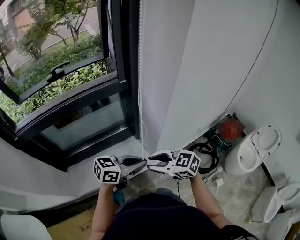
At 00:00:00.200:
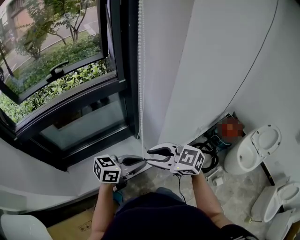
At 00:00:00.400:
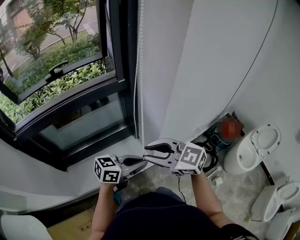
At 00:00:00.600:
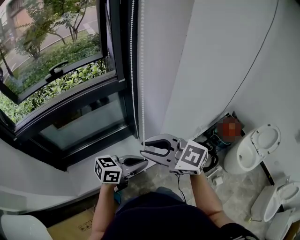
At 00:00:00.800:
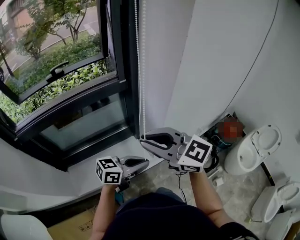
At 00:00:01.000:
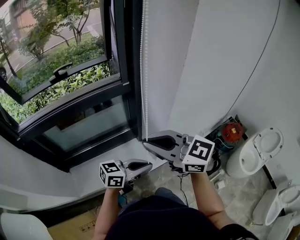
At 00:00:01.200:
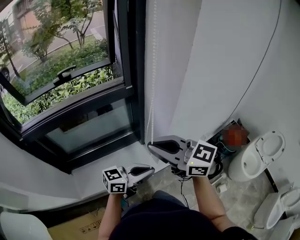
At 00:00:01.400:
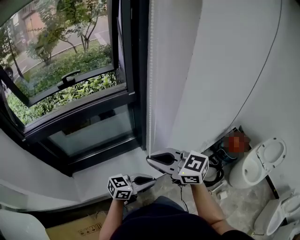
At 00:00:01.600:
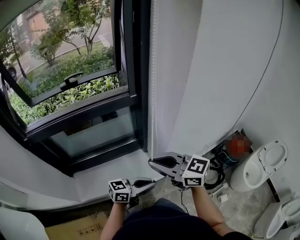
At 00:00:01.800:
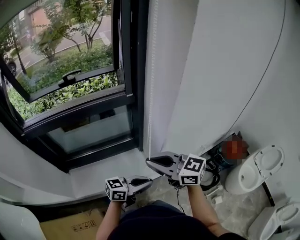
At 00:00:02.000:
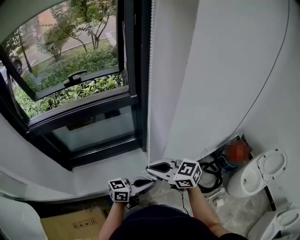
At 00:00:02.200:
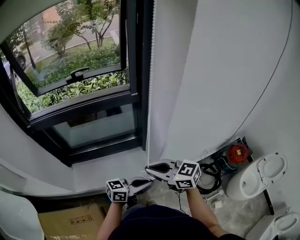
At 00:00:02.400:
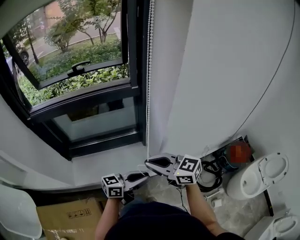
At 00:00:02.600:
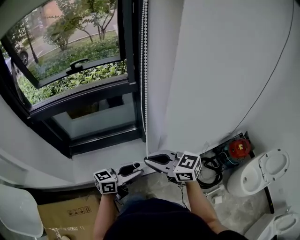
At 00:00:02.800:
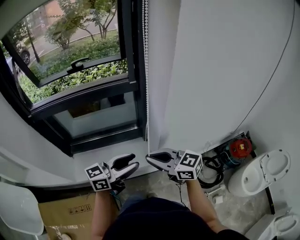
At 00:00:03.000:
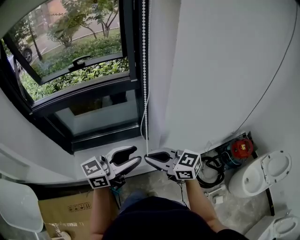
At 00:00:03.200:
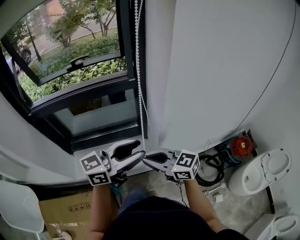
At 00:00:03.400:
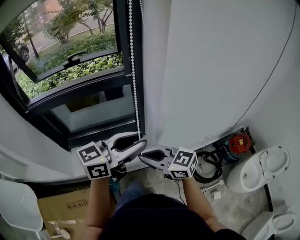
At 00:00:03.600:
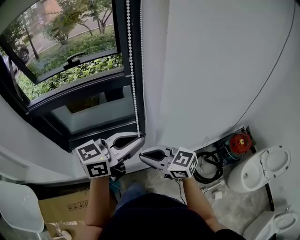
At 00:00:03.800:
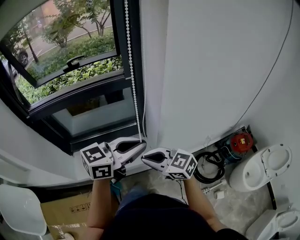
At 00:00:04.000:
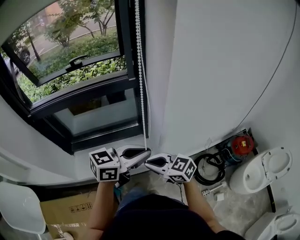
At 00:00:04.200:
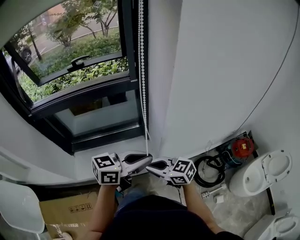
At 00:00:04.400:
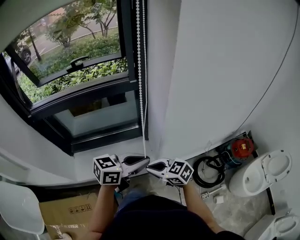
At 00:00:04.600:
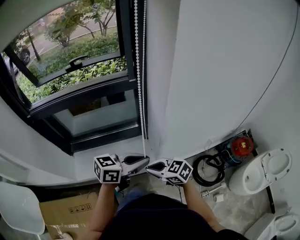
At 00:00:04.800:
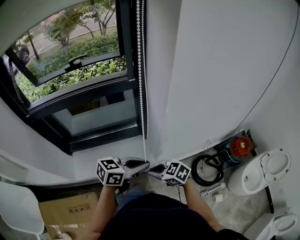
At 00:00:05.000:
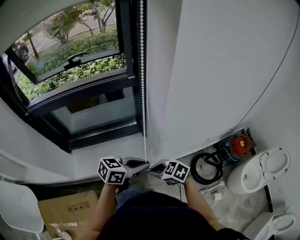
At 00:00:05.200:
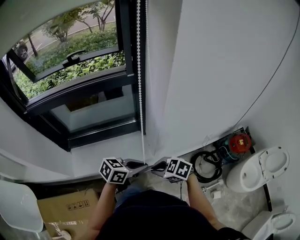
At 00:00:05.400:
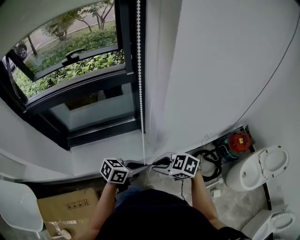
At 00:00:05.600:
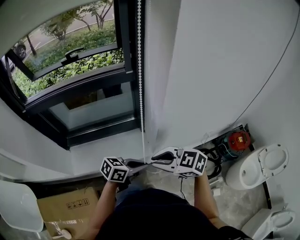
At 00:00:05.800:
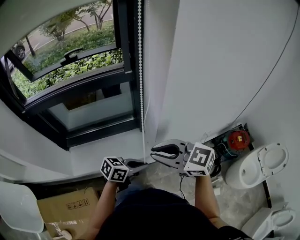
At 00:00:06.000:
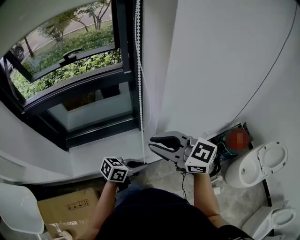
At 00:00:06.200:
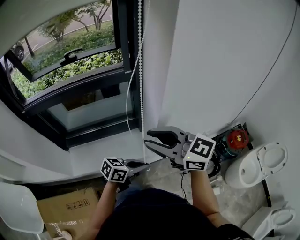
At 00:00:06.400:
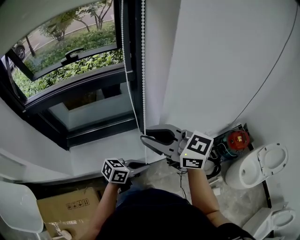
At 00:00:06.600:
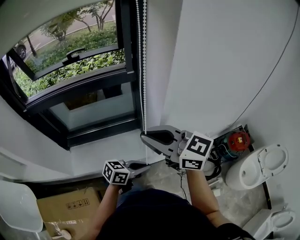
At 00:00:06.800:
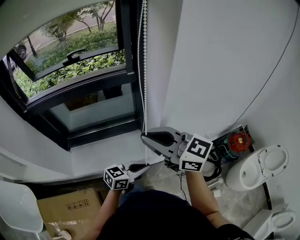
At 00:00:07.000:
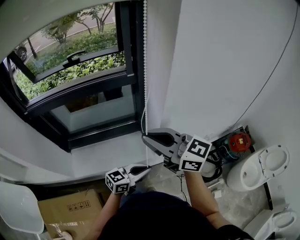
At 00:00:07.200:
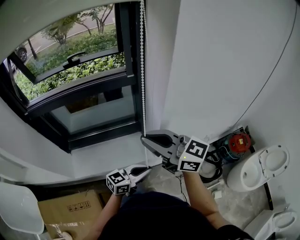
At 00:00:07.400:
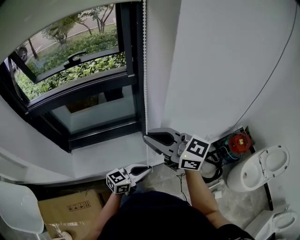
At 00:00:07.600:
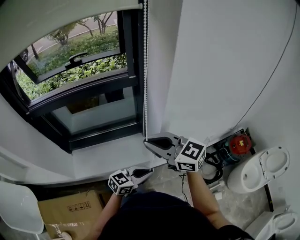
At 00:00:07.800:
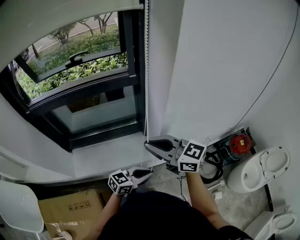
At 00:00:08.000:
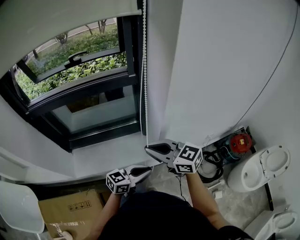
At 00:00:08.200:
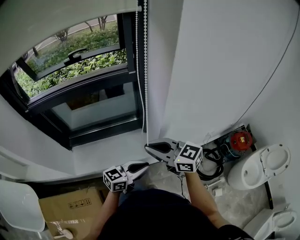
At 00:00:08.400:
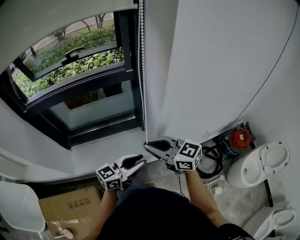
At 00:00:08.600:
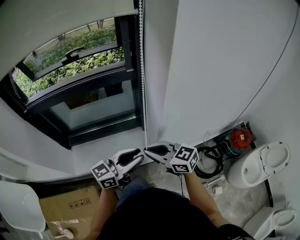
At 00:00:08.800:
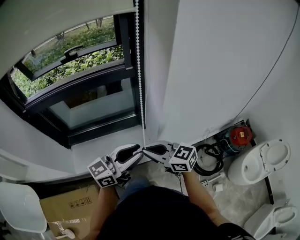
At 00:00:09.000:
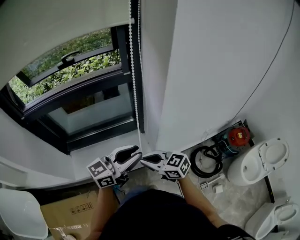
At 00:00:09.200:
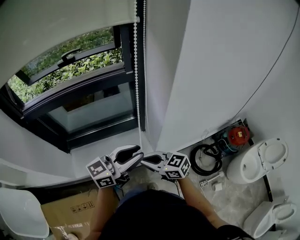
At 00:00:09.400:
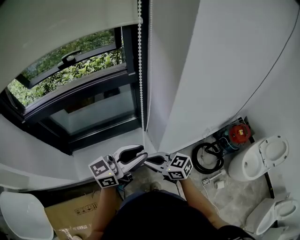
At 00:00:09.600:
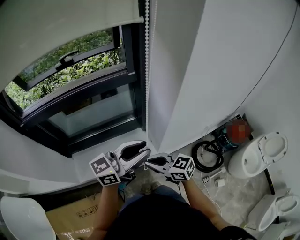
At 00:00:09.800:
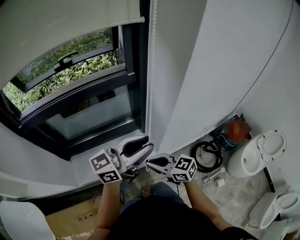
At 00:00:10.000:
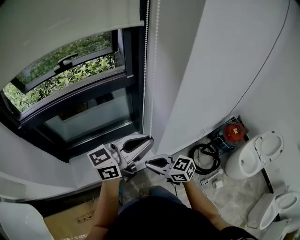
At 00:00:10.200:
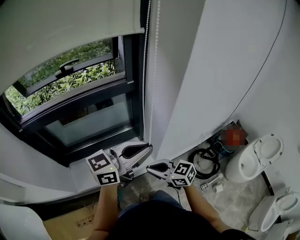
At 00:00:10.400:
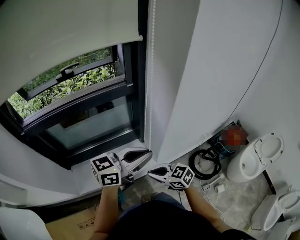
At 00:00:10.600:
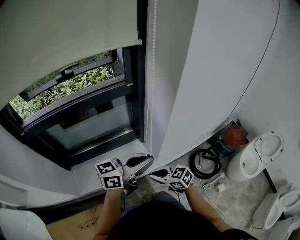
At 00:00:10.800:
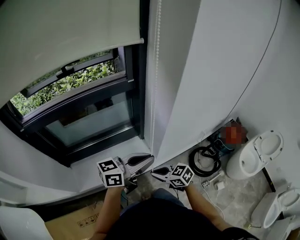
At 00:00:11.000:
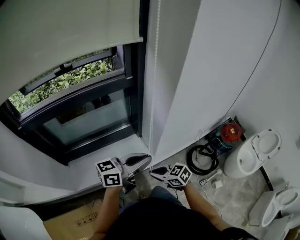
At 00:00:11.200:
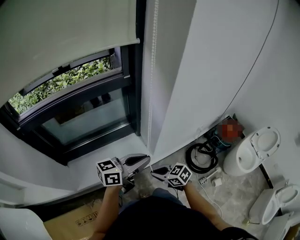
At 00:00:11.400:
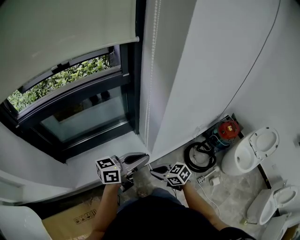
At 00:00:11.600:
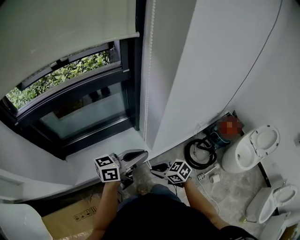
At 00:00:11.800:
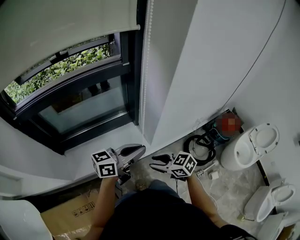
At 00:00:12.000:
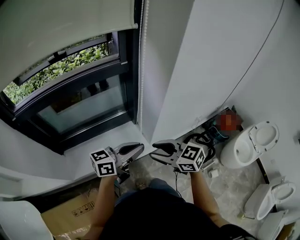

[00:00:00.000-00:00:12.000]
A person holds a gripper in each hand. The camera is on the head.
00:00:00.000 to 00:00:01.600: The right gripper travels upward by about 15 cm, rotates approximately 20 degrees, and closes, while the left gripper changes place by about 5 cm.
00:00:01.600 to 00:00:03.000: The left gripper moves upward, approximately 15 cm, swivels approximately 30 degrees, and opens. Meanwhile the right gripper travels downward by some 5 cm.
00:00:03.000 to 00:00:04.400: The right gripper travels downward by approximately 10 cm; the left gripper moves downward, some 5 cm, turns by roughly 20 degrees, and closes its fingers.
00:00:04.400 to 00:00:06.000: The left gripper travels downward by roughly 10 cm. Meanwhile the right gripper travels upward by roughly 20 cm, and turns by about 20 degrees.
00:00:06.000 to 00:00:07.600: The left gripper swivels some 20 degrees.
00:00:07.600 to 00:00:09.000: The left gripper travels upward by approximately 15 cm, and changes its angle by about 20 degrees; the right gripper is displaced downward by some 15 cm.
00:00:09.000 to 00:00:10.400: The left gripper travels upward by roughly 5 cm.
00:00:10.400 to 00:00:12.000: The right gripper moves upward, some 5 cm, and opens up, while the left gripper goes about 10 cm downward.

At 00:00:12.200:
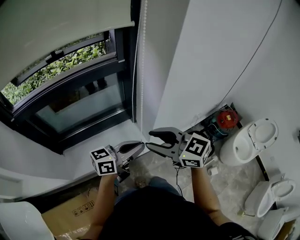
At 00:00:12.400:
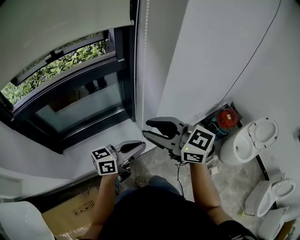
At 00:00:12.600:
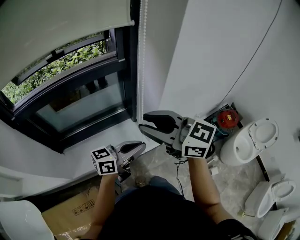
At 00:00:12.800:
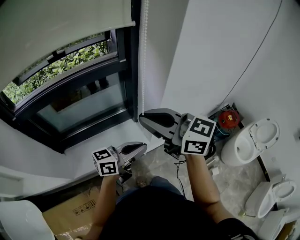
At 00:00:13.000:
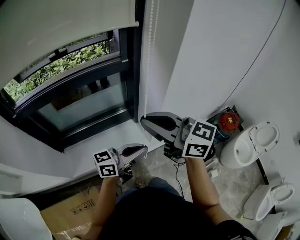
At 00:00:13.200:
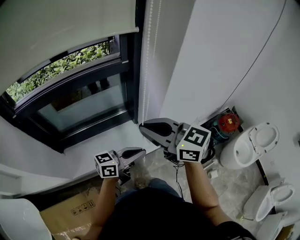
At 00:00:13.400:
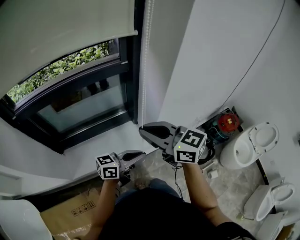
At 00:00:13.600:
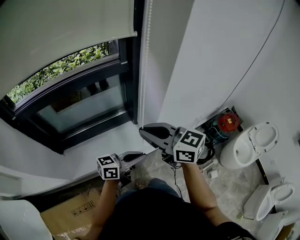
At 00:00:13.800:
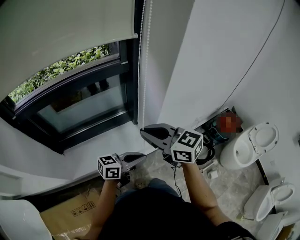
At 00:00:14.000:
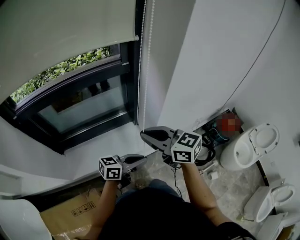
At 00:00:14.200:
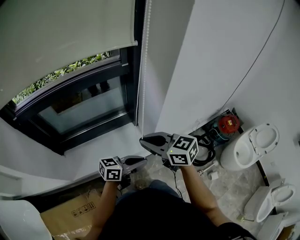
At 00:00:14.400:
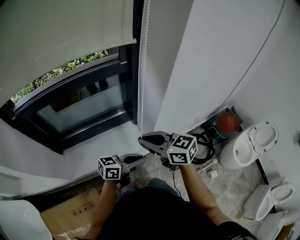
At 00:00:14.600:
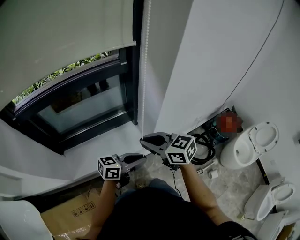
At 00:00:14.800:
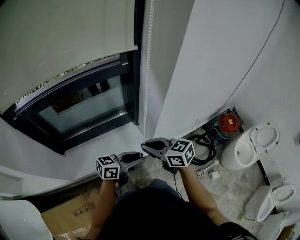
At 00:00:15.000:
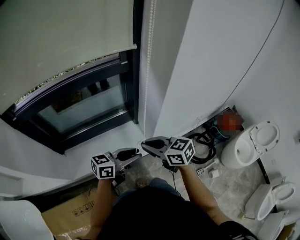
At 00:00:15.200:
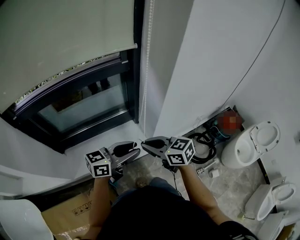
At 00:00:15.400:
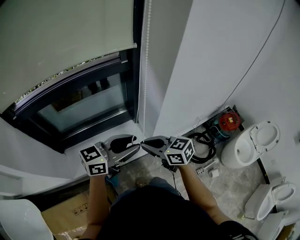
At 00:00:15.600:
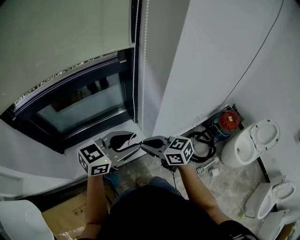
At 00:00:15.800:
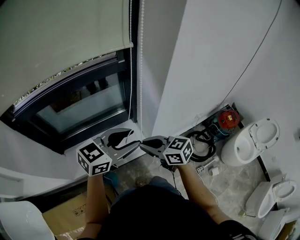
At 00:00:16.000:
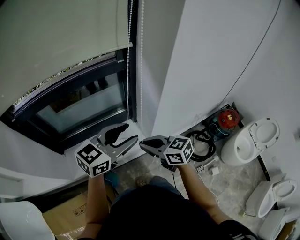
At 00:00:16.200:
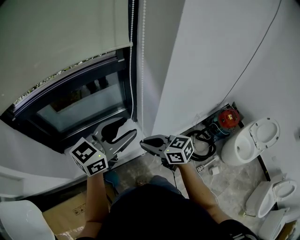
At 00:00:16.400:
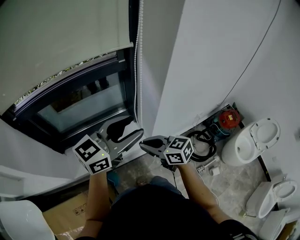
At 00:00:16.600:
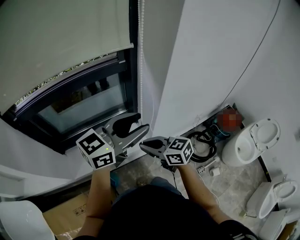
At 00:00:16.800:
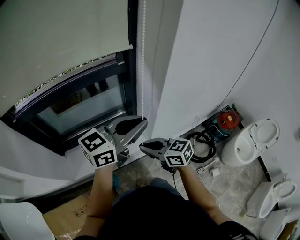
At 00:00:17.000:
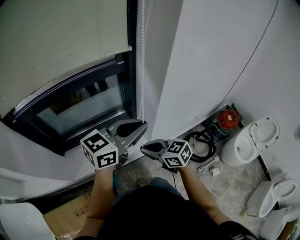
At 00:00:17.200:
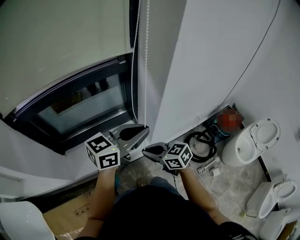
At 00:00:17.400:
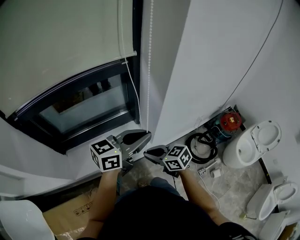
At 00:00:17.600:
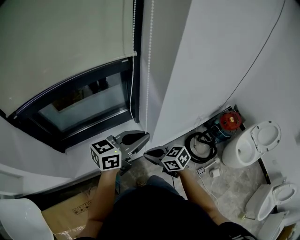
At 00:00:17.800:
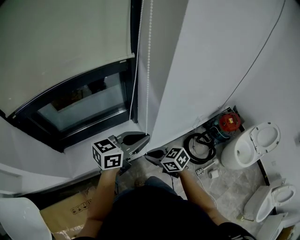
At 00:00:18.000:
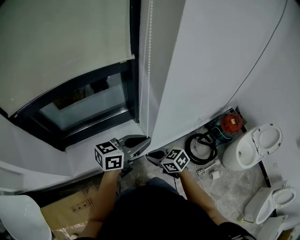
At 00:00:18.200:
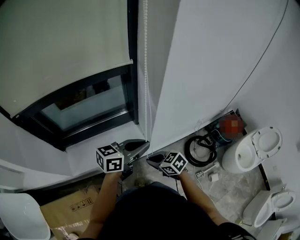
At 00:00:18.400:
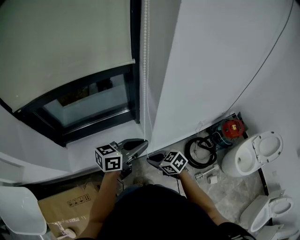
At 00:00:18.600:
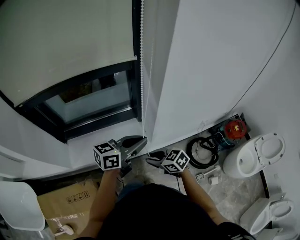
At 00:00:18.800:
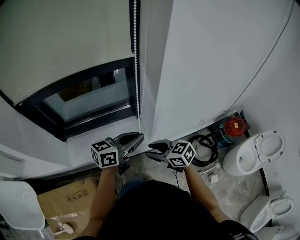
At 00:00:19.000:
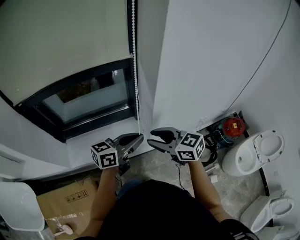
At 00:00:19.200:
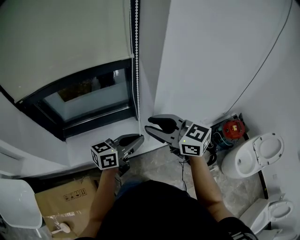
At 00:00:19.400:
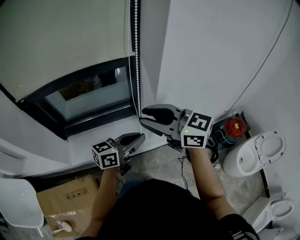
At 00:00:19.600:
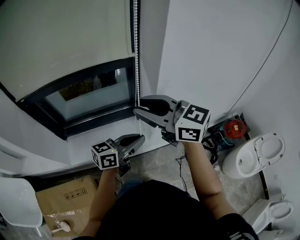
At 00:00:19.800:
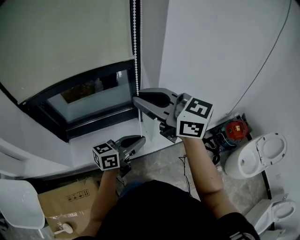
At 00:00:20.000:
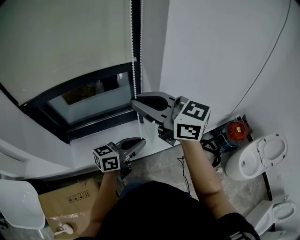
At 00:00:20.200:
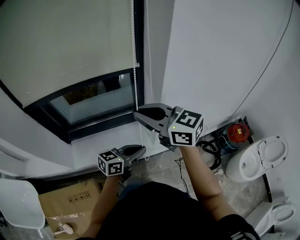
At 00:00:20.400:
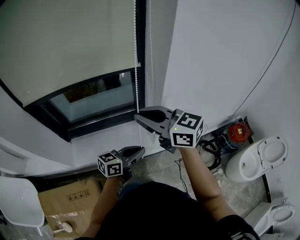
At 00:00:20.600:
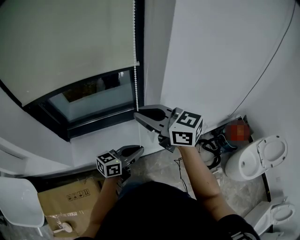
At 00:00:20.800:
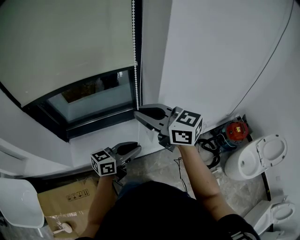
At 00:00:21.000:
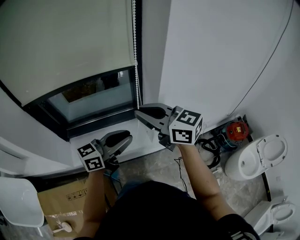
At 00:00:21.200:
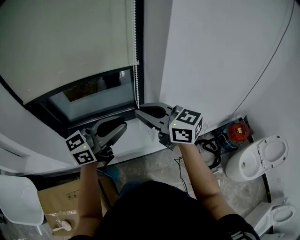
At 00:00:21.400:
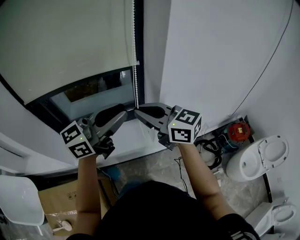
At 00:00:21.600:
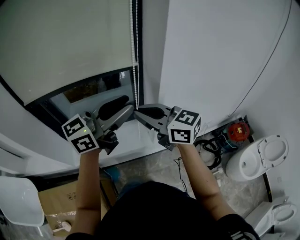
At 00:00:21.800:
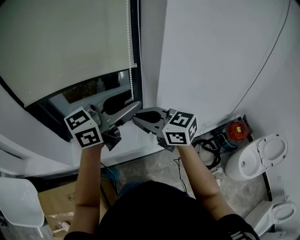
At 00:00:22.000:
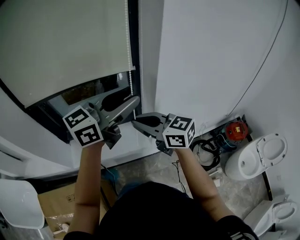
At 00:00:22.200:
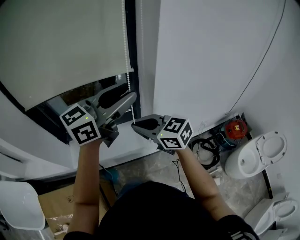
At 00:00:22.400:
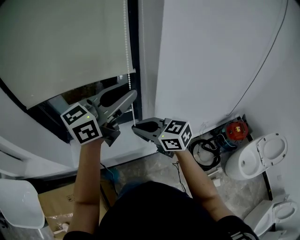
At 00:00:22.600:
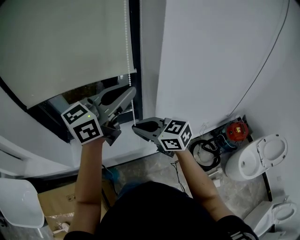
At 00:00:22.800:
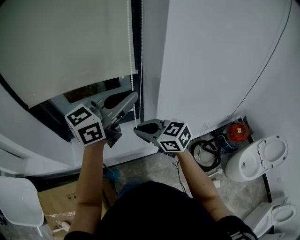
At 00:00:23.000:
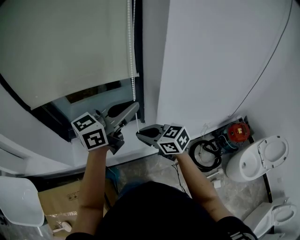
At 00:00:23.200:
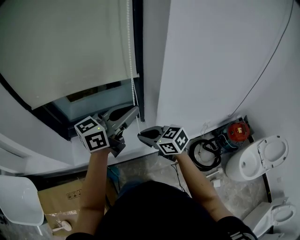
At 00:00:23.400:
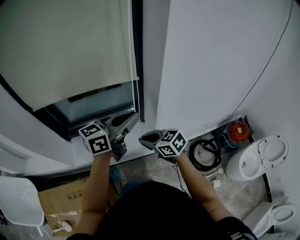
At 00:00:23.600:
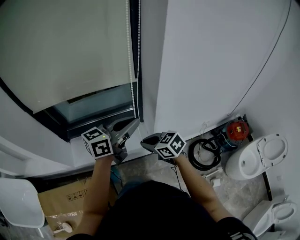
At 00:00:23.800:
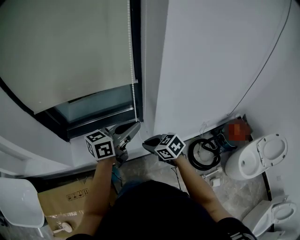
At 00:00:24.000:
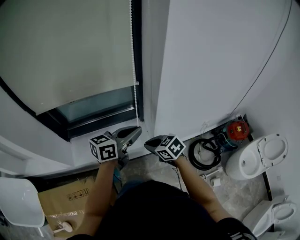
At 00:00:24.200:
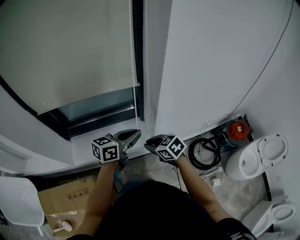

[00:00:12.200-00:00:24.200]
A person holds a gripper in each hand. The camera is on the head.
00:00:12.200 to 00:00:13.800: The right gripper goes upward and returns, some 10 cm each way, and closes up. The left gripper goes roughly 5 cm downward.
00:00:13.800 to 00:00:15.200: The right gripper goes approximately 10 cm downward; the left gripper is displaced upward by some 5 cm, and opens.
00:00:15.200 to 00:00:16.600: The left gripper travels upward by about 15 cm.
00:00:16.600 to 00:00:18.200: Both grippers travel together downward, roughly 10 cm. The left gripper changes its angle by about 20 degrees, and closes up. Meanwhile the right gripper changes its angle by approximately 20 degrees.
00:00:18.200 to 00:00:19.800: The right gripper goes some 35 cm upward, angles its fingers upward, by some 40 degrees, and opens and closes again.
00:00:19.800 to 00:00:21.200: The right gripper goes some 10 cm downward. Meanwhile the left gripper travels upward and to the left by about 15 cm.
00:00:21.200 to 00:00:22.600: The left gripper goes approximately 10 cm upward, and opens, then closes again. Meanwhile the right gripper travels downward by about 10 cm.
00:00:22.600 to 00:00:24.200: The two grippers go approximately 20 cm downward. The left gripper swivels some 30 degrees; the right gripper rotates approximately 30 degrees.
